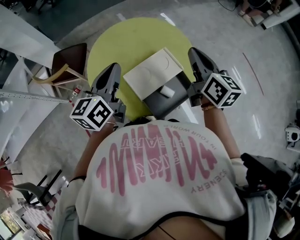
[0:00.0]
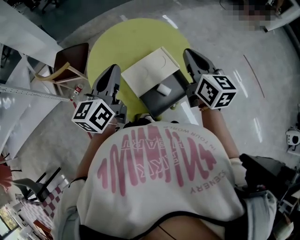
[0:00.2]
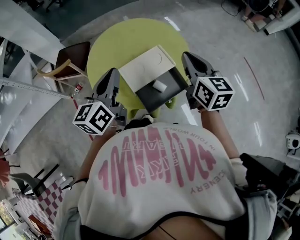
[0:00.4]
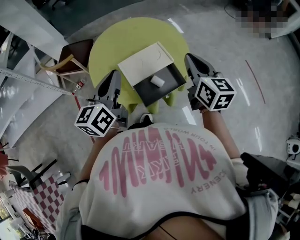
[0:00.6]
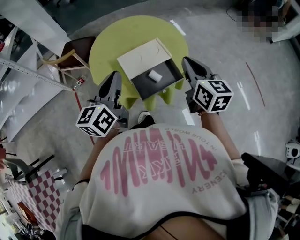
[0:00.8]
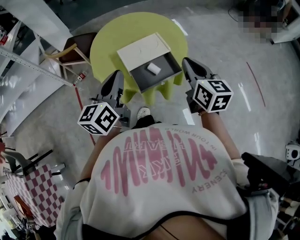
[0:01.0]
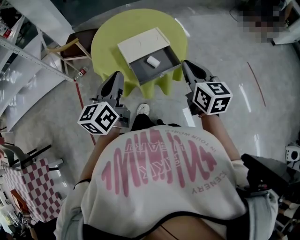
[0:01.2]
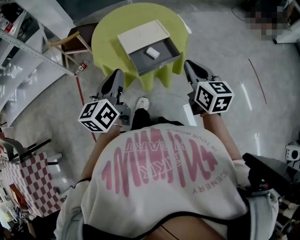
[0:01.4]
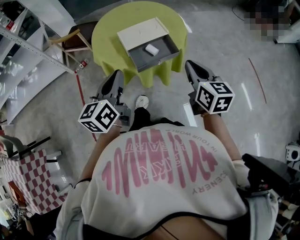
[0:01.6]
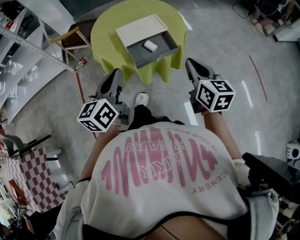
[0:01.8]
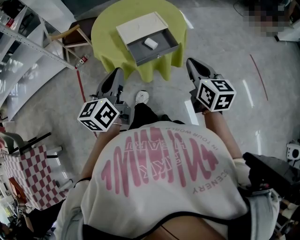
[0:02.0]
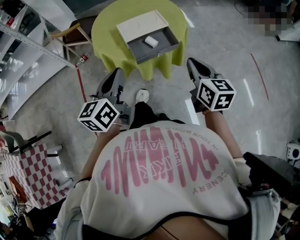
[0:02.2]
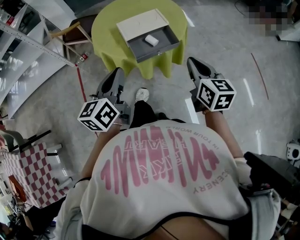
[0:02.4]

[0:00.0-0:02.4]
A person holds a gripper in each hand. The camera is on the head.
0.0 to 1.2 s: Both grippers travel together backward, approximately 25 cm.
1.2 to 2.4 s: The grippers both shift backward by approximately 10 cm.

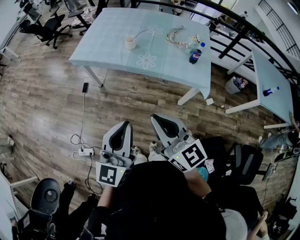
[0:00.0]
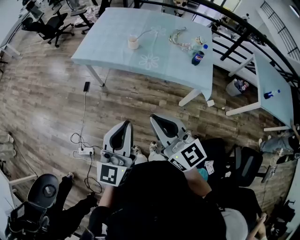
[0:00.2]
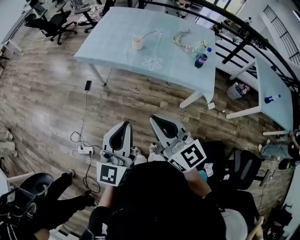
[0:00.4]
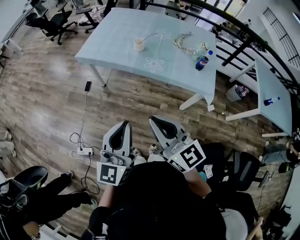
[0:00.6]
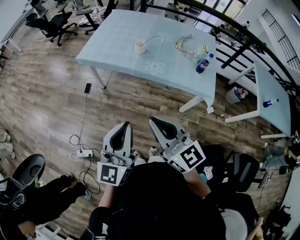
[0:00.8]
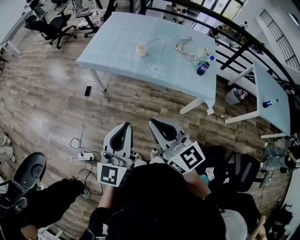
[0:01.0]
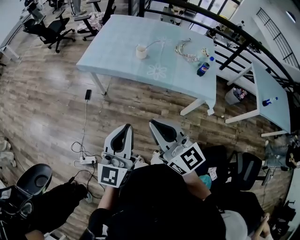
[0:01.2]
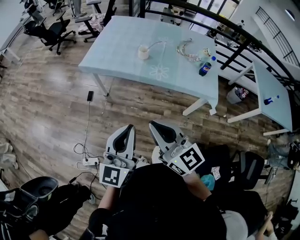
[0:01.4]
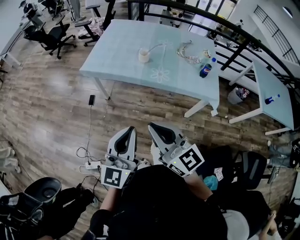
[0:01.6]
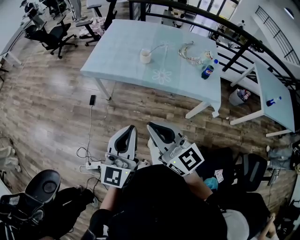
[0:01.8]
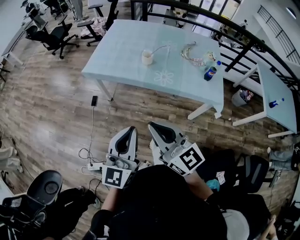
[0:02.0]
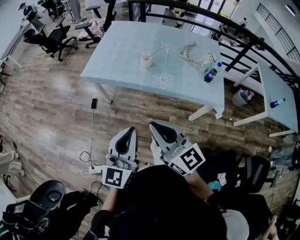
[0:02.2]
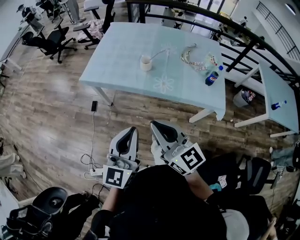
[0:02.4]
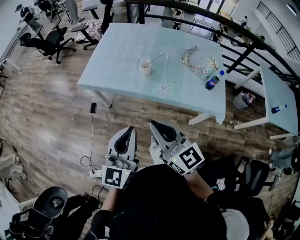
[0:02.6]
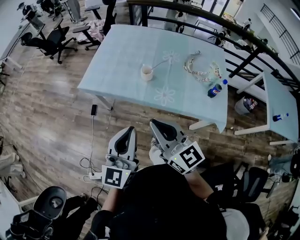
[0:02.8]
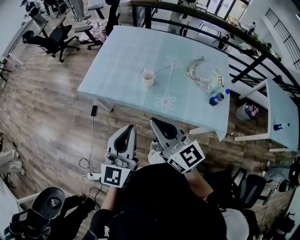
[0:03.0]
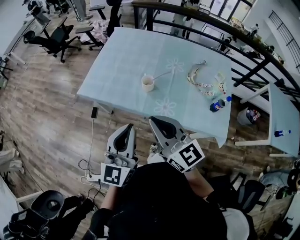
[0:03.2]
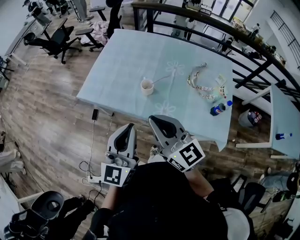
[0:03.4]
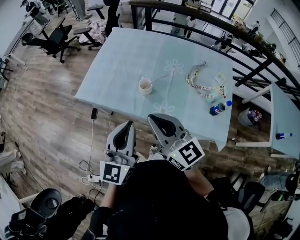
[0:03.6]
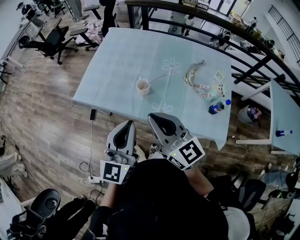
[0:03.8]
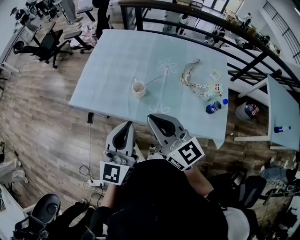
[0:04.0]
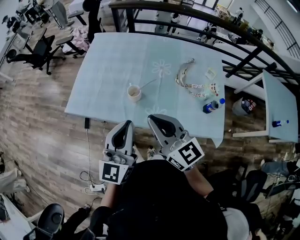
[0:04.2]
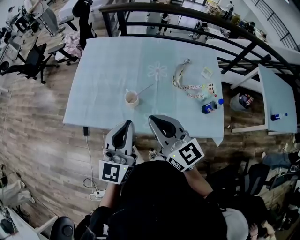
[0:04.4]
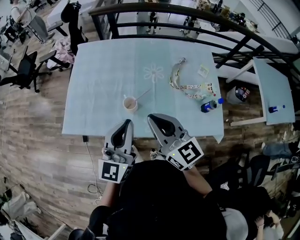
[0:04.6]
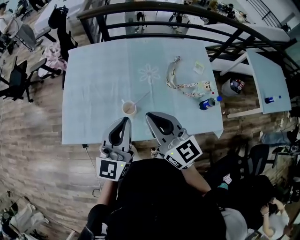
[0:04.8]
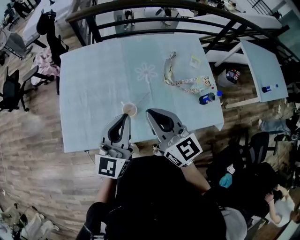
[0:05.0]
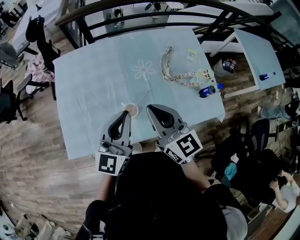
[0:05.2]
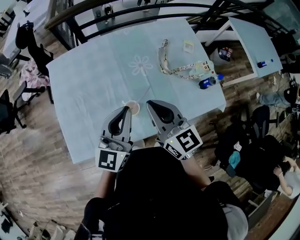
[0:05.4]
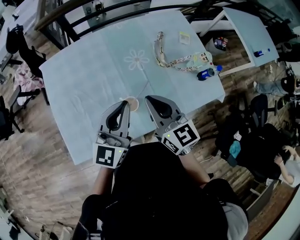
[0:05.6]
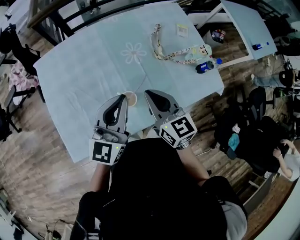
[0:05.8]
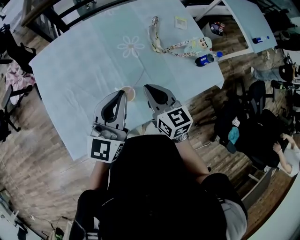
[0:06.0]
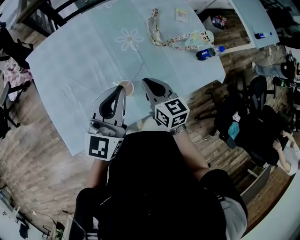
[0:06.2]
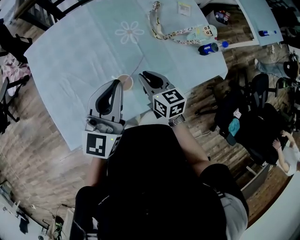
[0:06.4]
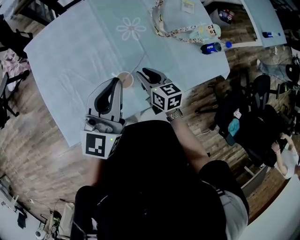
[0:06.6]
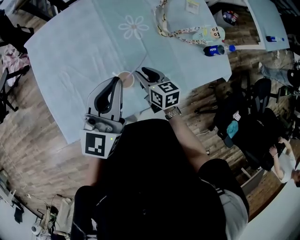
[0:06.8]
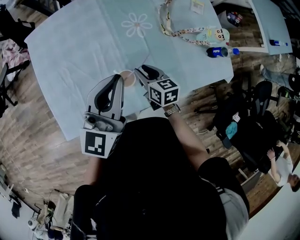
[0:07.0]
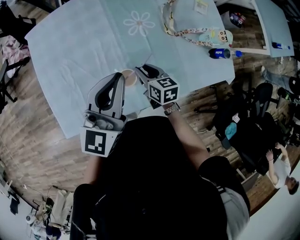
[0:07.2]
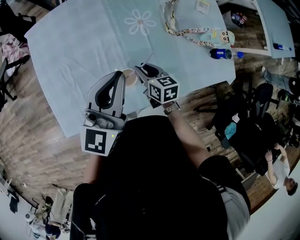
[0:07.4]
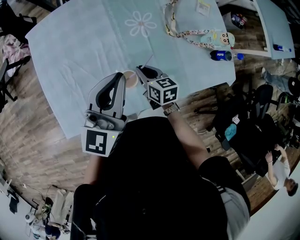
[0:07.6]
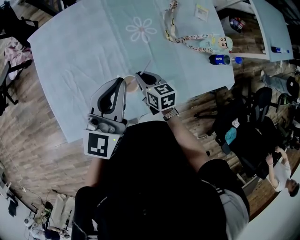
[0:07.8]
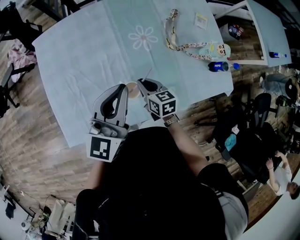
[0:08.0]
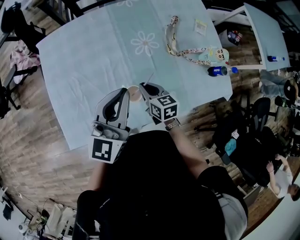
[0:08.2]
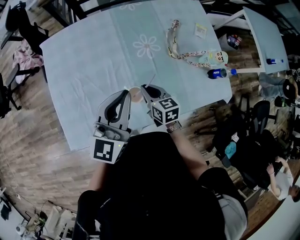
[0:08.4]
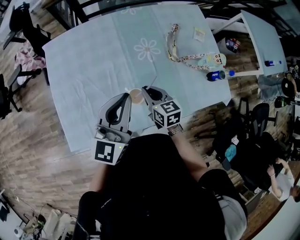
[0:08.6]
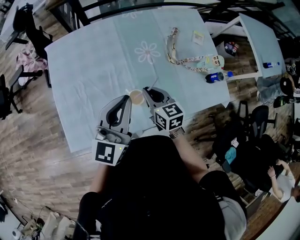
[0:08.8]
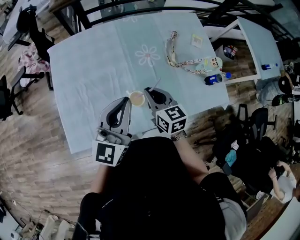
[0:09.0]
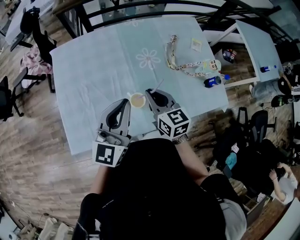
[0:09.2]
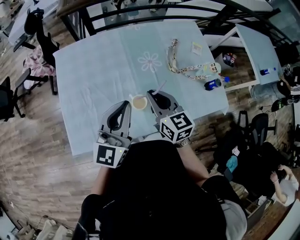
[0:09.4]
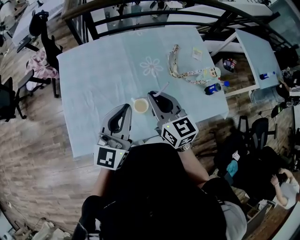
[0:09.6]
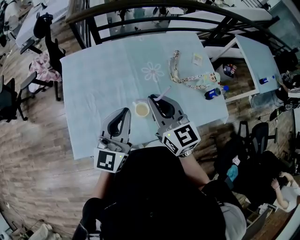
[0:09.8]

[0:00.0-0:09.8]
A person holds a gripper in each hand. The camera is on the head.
0.0 to 1.4 s: The grippers both shift to the left by some 10 cm.
1.4 to 2.8 s: Both grippers move forward, some 20 cm.
2.8 to 4.2 s: Both grippers travel together forward and to the right, about 20 cm.
4.2 to 5.6 s: The right gripper moves roughly 20 cm, and rotates some 40 degrees. Meanwhile the left gripper moves about 25 cm, and changes its angle by roughly 40 degrees.
5.6 to 7.0 s: The right gripper heads downward, covering approximately 25 cm, swivels roughly 30 degrees, and opens its fingers.
7.0 to 8.4 s: The right gripper closes up.
8.4 to 9.8 s: The left gripper travels backward and upward by some 10 cm, while the right gripper moves upward, about 25 cm, and turns by roughly 30 degrees.

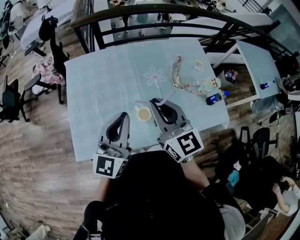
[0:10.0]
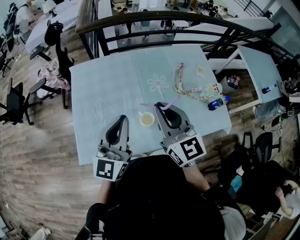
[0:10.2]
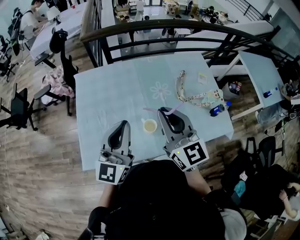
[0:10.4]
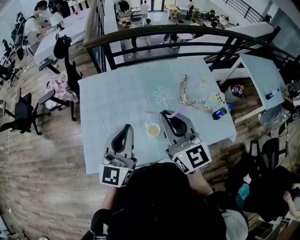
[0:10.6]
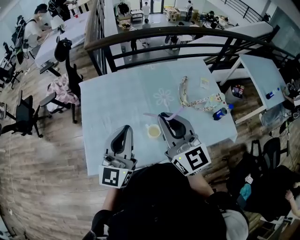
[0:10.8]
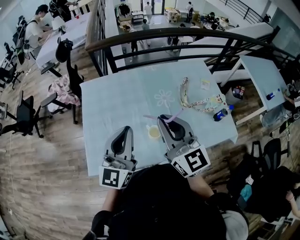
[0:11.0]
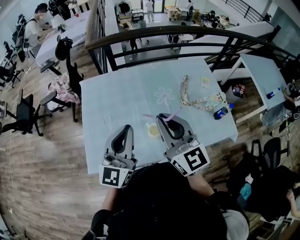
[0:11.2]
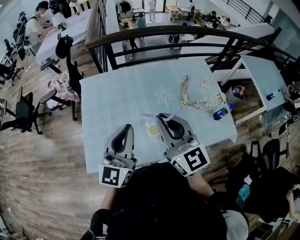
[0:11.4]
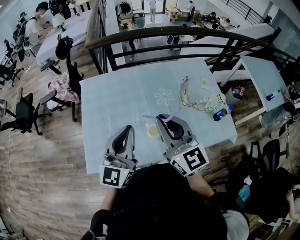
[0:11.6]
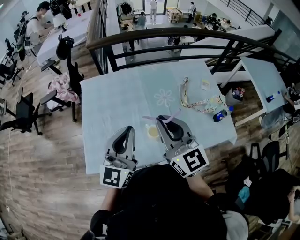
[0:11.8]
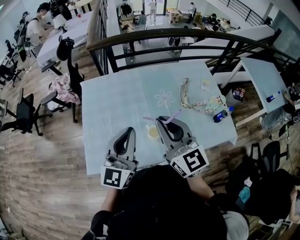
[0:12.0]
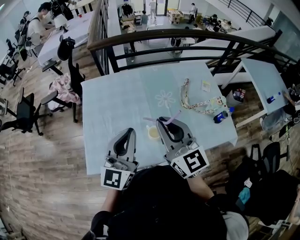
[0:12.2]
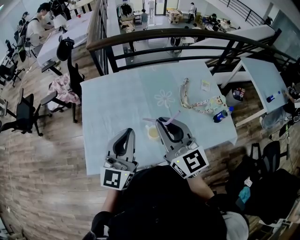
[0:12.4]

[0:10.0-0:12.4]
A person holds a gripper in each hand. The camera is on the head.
10.0 to 11.2 s: The right gripper moves approximately 5 cm.
11.2 to 12.4 s: Both grippers stay put.

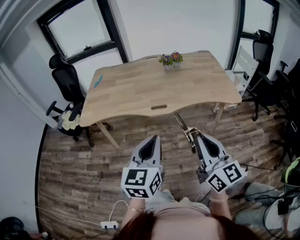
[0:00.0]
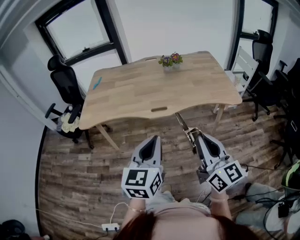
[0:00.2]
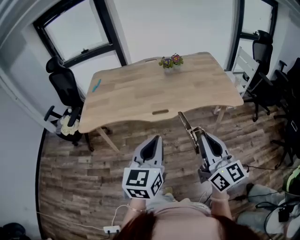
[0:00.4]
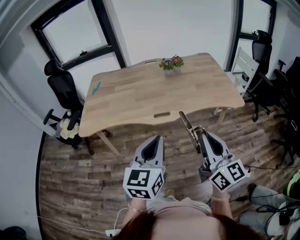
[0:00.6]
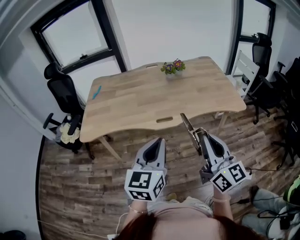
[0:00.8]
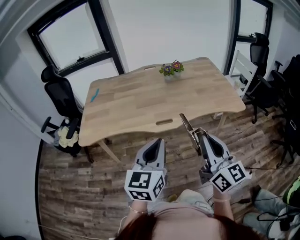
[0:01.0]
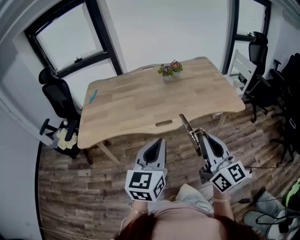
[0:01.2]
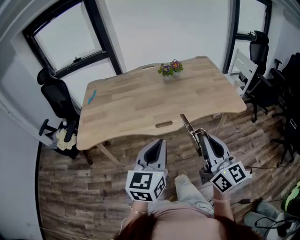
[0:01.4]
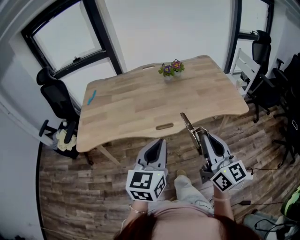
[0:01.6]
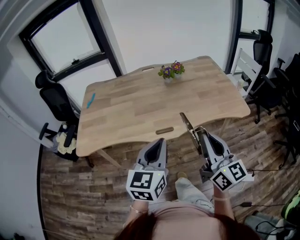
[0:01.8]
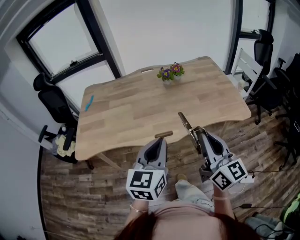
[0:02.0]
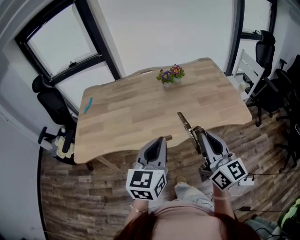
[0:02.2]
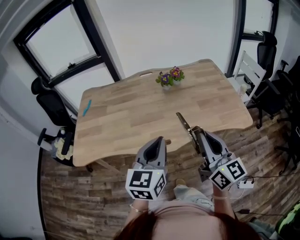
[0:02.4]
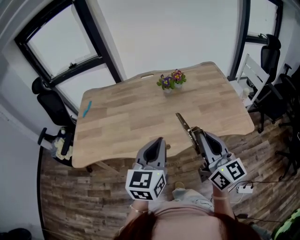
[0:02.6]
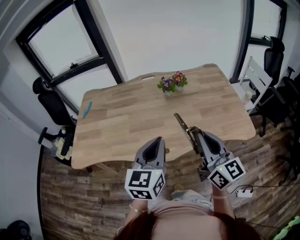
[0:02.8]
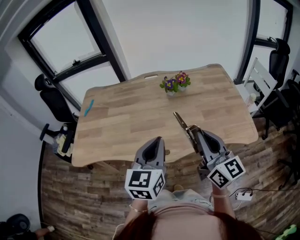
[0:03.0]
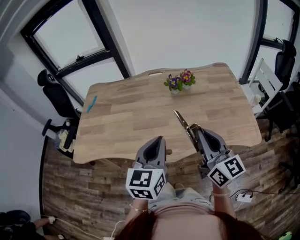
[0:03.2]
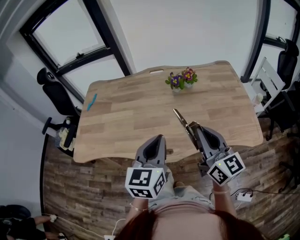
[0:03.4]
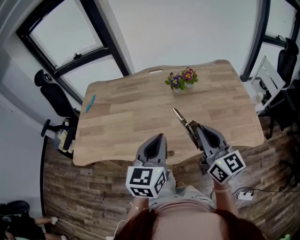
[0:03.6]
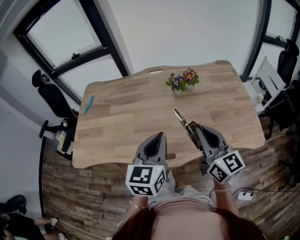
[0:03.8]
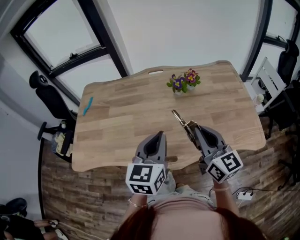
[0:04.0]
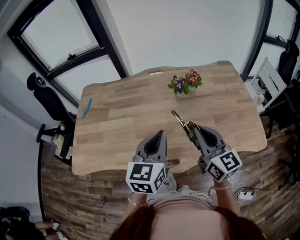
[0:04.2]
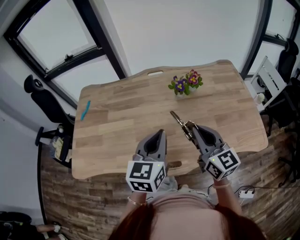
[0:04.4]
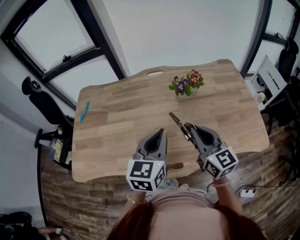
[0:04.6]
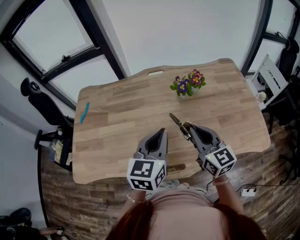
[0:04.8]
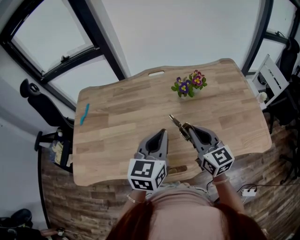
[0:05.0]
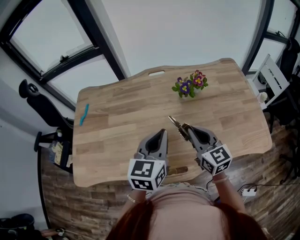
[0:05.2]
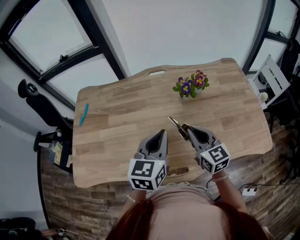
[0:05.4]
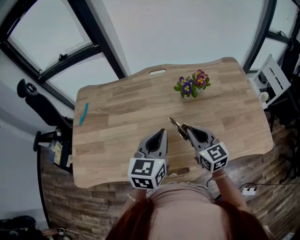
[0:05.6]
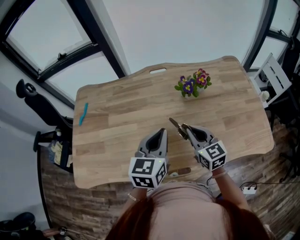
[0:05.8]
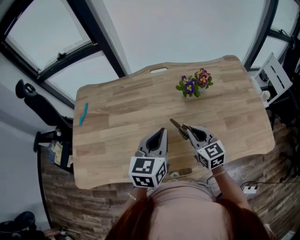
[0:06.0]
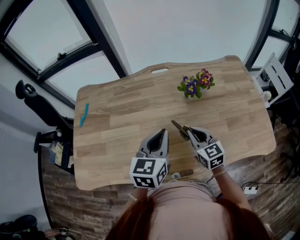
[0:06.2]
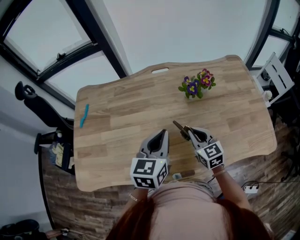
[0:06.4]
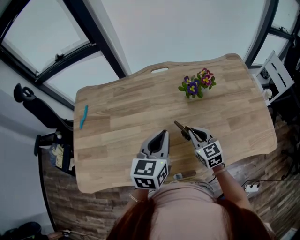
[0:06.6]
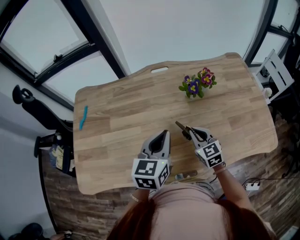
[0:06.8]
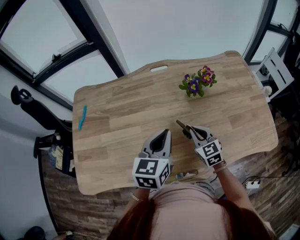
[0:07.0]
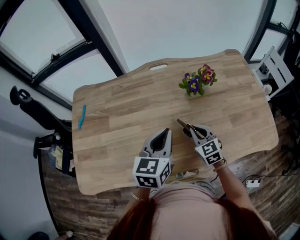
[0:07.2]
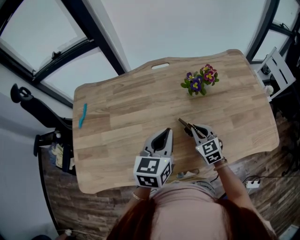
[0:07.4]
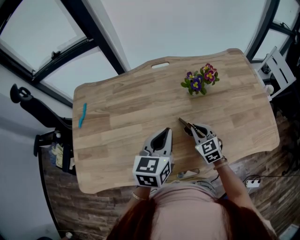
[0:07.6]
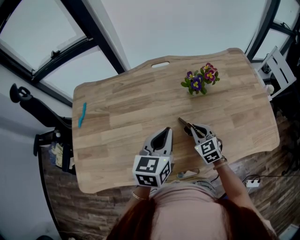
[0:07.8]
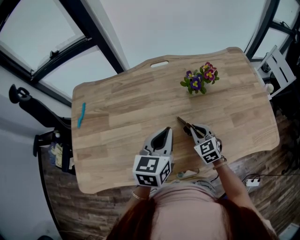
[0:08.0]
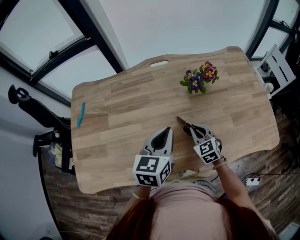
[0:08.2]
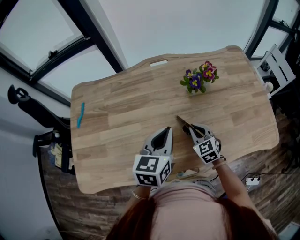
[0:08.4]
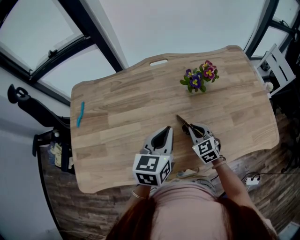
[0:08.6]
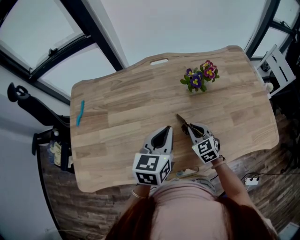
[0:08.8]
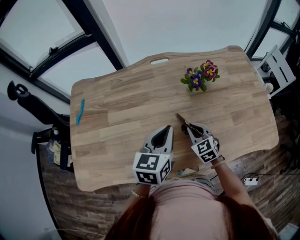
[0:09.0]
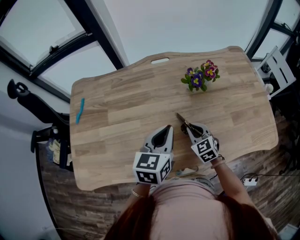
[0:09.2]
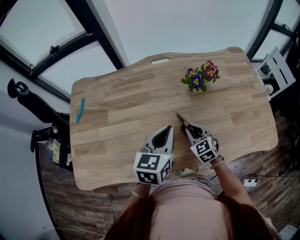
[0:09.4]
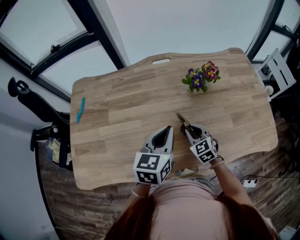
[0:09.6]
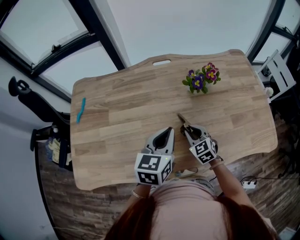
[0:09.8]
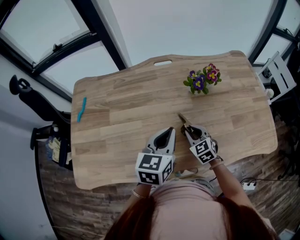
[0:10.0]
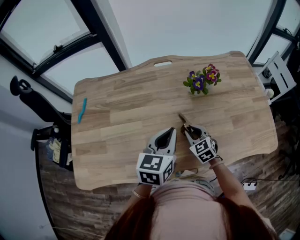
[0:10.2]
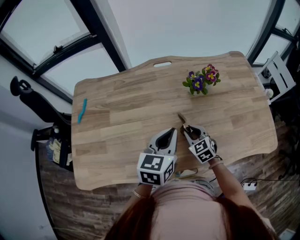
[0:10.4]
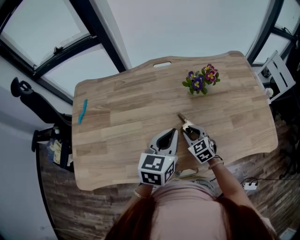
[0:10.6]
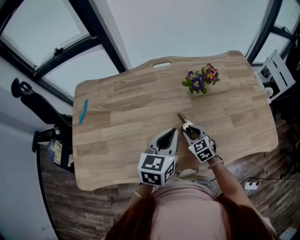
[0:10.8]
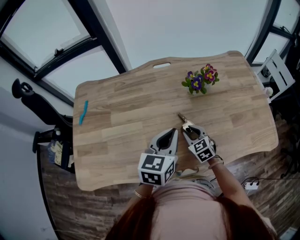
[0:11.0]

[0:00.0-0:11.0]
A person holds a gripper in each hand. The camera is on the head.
0.0 to 1.6 s: The two grippers go about 15 cm forward.
1.6 to 3.2 s: Both grippers move forward, approximately 20 cm.
3.2 to 4.8 s: The left gripper is displaced forward by about 15 cm, while the right gripper heads forward, downward and to the left, covering some 20 cm.
4.8 to 6.2 s: The left gripper heads forward, covering roughly 5 cm. Meanwhile the right gripper heads downward and forward, covering some 15 cm.
6.2 to 7.8 s: The right gripper goes some 10 cm downward.
7.8 to 11.0 s: The grippers make only small movements.
